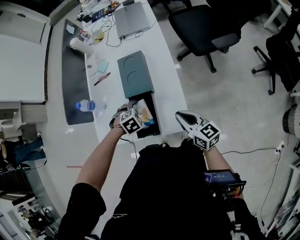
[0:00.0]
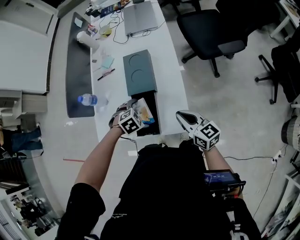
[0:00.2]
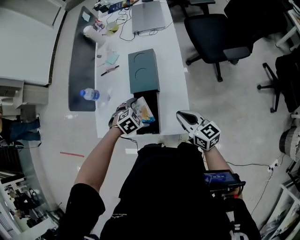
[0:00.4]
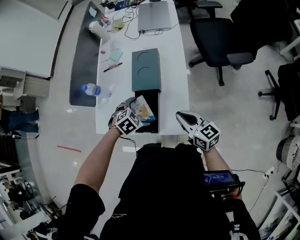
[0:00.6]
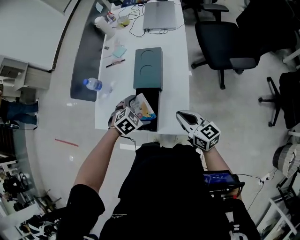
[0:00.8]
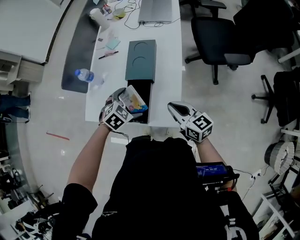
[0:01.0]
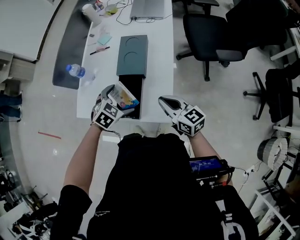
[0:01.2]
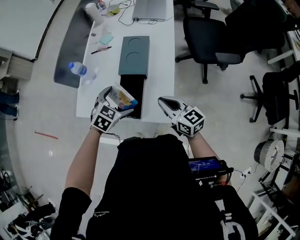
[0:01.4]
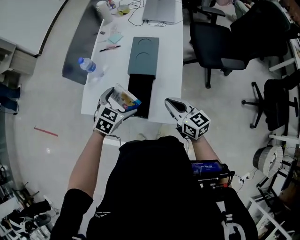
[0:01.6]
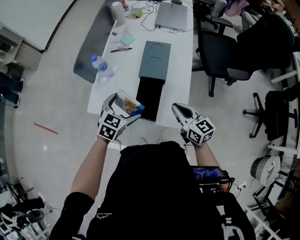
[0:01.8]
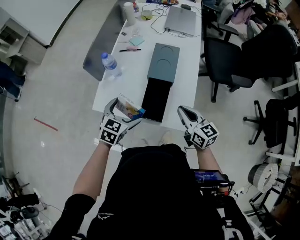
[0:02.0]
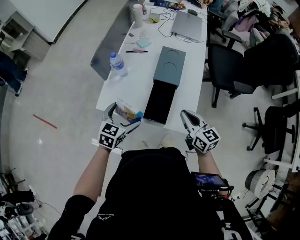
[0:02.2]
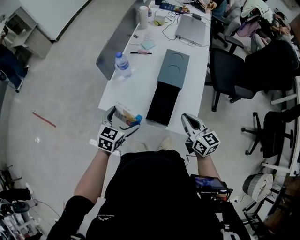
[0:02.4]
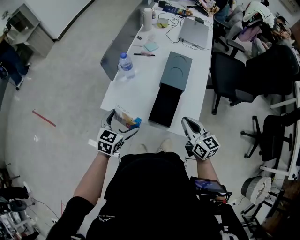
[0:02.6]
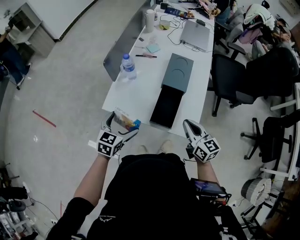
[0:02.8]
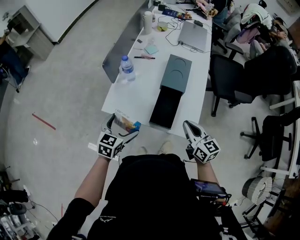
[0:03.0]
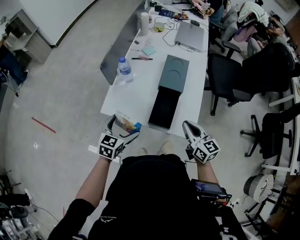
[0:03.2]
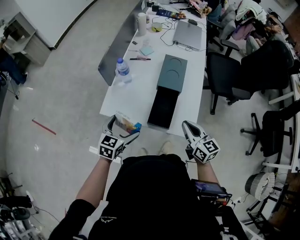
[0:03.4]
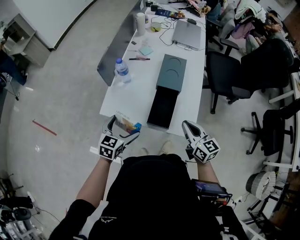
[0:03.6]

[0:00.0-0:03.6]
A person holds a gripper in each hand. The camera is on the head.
0.0 to 1.8 s: The left gripper moves upward, roughly 10 cm, and points its fingers some 40 degrees further upward, while the right gripper ends up roughly 5 cm from where it was.
1.8 to 3.6 s: The left gripper heads to the left and backward, covering roughly 10 cm; the right gripper ends up approximately 5 cm from where it was.

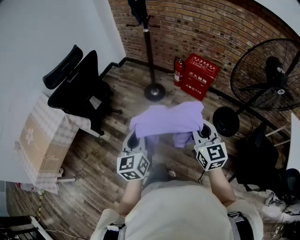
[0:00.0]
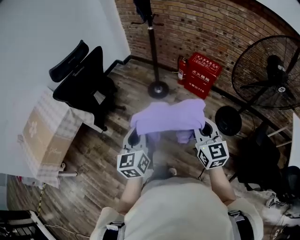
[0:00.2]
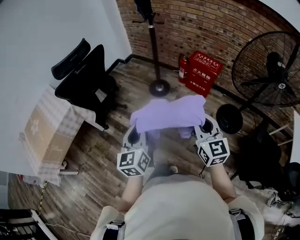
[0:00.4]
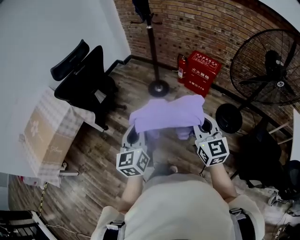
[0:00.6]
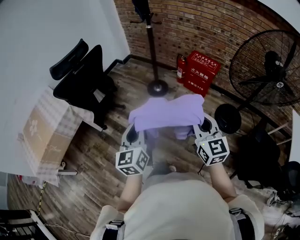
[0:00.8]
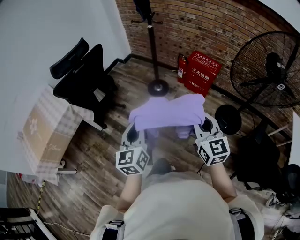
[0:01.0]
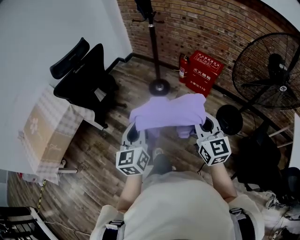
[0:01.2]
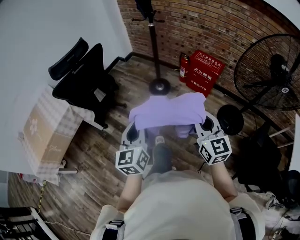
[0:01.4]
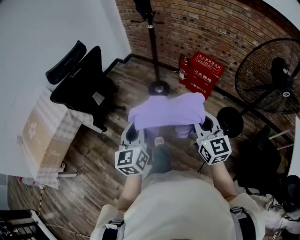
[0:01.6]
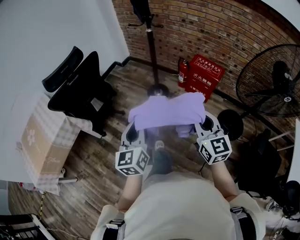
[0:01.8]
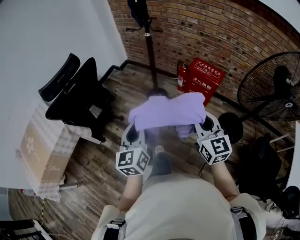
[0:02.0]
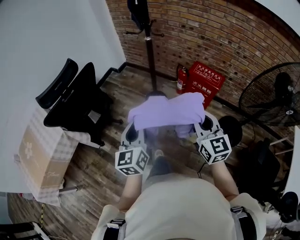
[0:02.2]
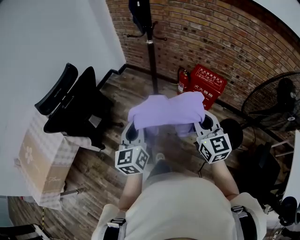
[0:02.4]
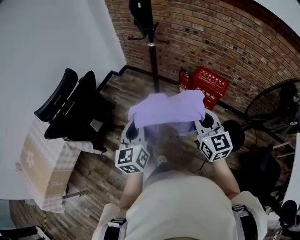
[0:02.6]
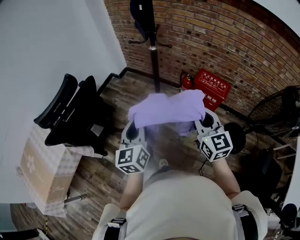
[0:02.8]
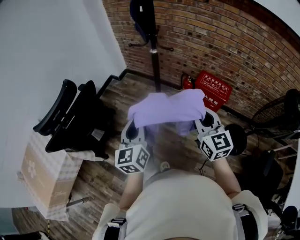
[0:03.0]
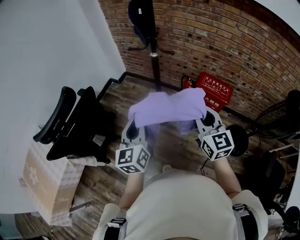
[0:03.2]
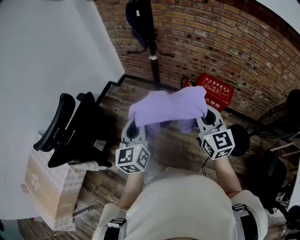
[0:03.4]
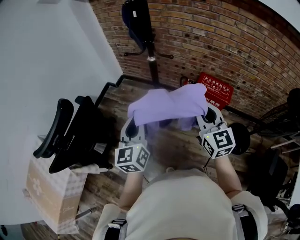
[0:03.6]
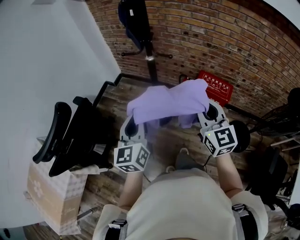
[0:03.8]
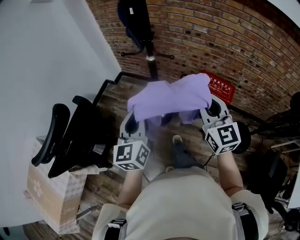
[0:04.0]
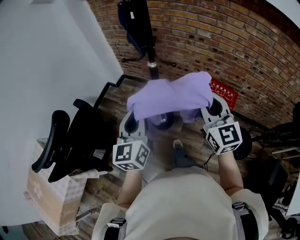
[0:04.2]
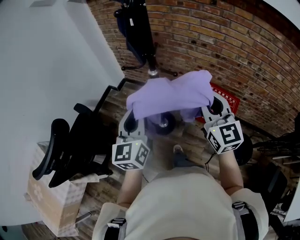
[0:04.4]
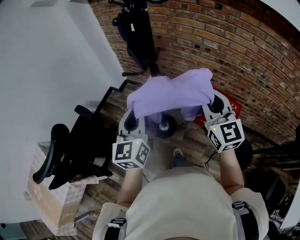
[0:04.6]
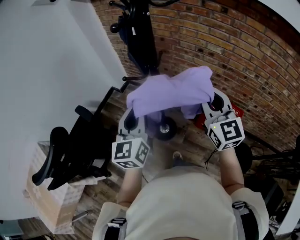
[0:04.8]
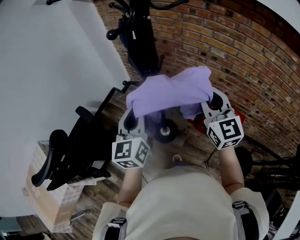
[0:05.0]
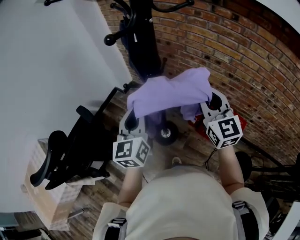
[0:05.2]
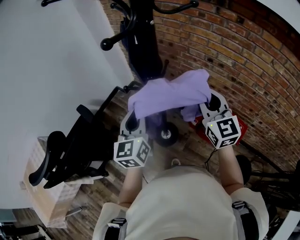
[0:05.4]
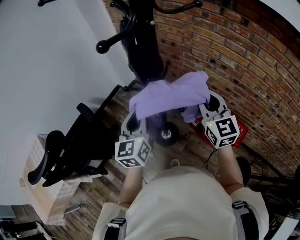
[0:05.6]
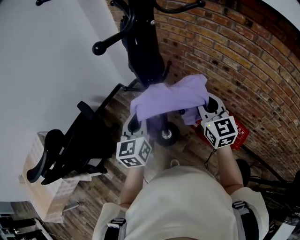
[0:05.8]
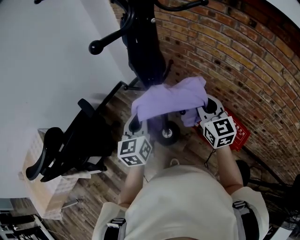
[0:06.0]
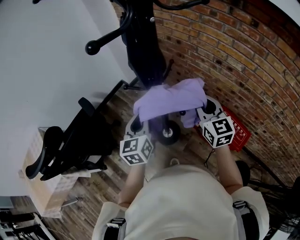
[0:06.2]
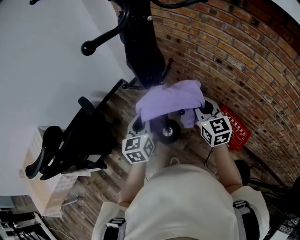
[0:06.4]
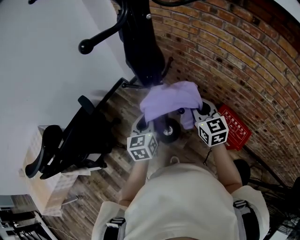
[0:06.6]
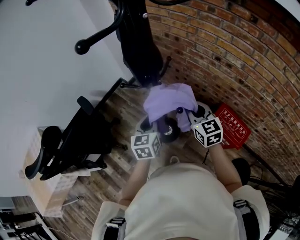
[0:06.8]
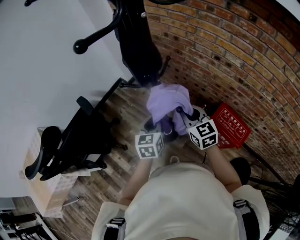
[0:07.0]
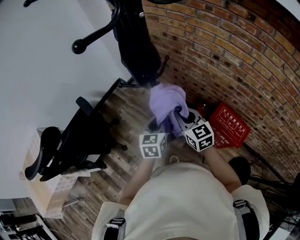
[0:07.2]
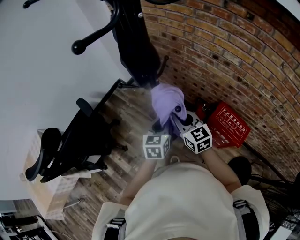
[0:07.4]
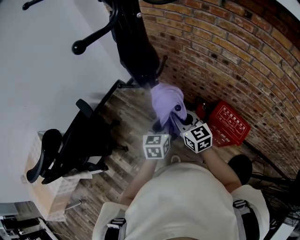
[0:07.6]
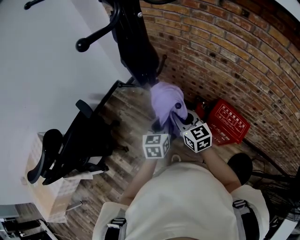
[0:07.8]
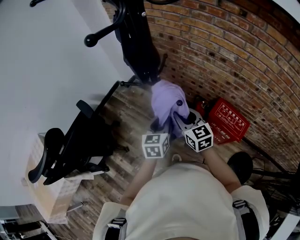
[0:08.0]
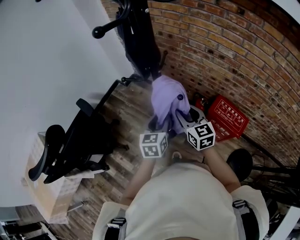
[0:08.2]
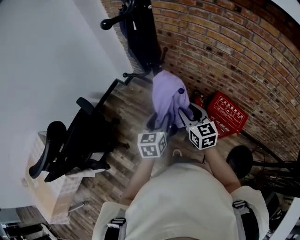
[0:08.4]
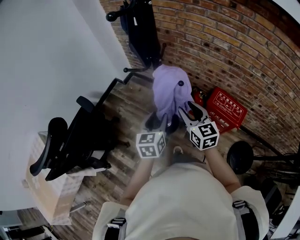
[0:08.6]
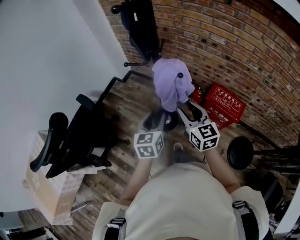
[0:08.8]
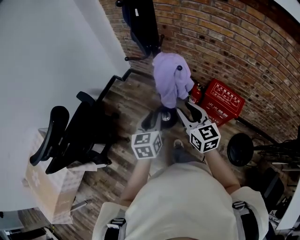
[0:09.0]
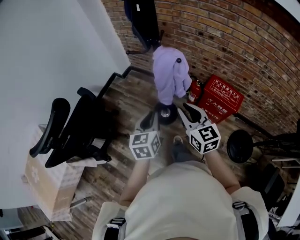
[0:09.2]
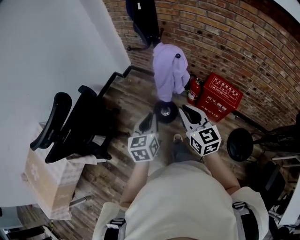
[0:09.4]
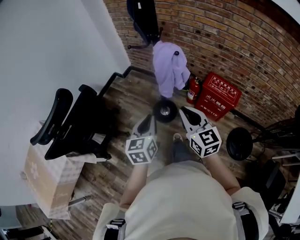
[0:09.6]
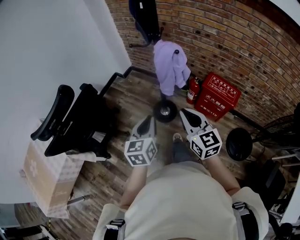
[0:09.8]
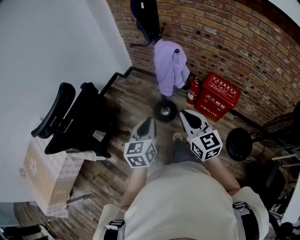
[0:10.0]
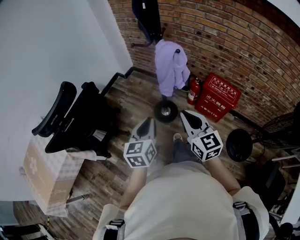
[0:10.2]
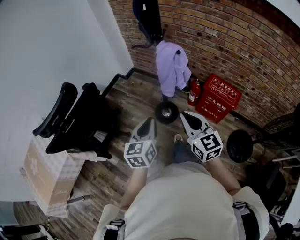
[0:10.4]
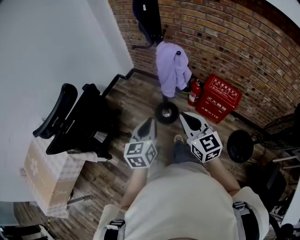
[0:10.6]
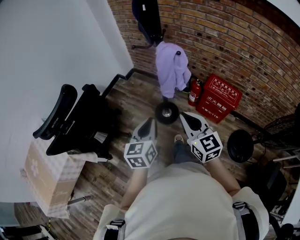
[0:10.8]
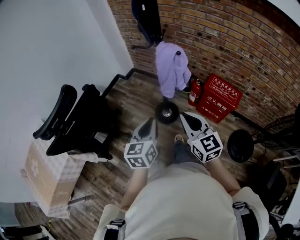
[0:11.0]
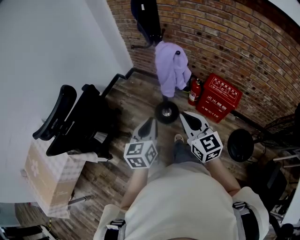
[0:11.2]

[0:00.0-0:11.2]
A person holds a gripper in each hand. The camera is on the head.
0.0 to 1.6 s: The grippers make only small movements.
1.6 to 3.2 s: Both grippers travel together forward, roughly 35 cm.
3.2 to 4.8 s: The two grippers go approximately 25 cm forward.
4.8 to 6.4 s: The grippers both shift downward and forward by approximately 15 cm. The left gripper rotates roughly 20 degrees.
6.4 to 8.0 s: The left gripper goes roughly 10 cm to the right and downward. The right gripper heads downward and to the left, covering some 10 cm.
8.0 to 9.6 s: The left gripper heads backward and to the left, covering roughly 25 cm, while the right gripper moves backward, some 25 cm, and closes up.
9.6 to 11.2 s: The grippers make only small movements.

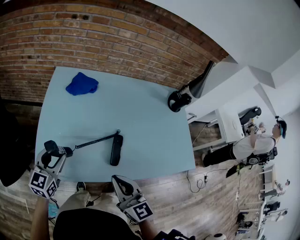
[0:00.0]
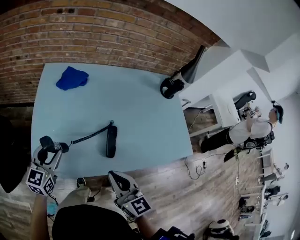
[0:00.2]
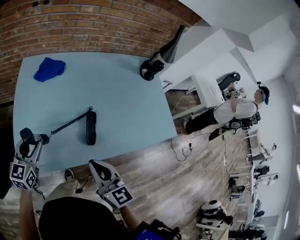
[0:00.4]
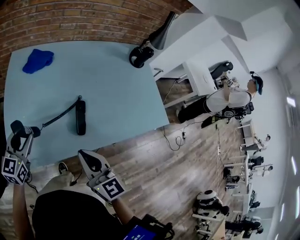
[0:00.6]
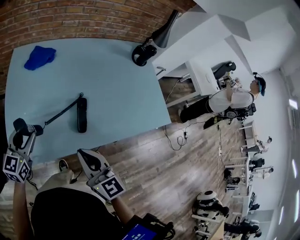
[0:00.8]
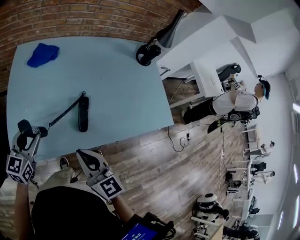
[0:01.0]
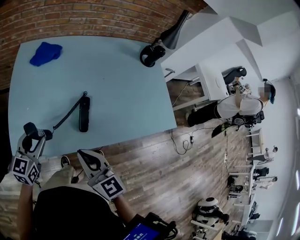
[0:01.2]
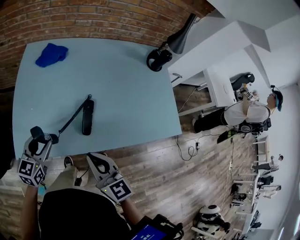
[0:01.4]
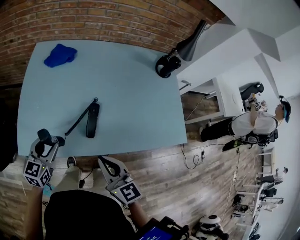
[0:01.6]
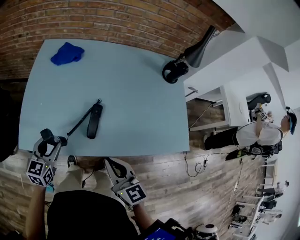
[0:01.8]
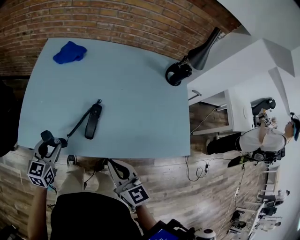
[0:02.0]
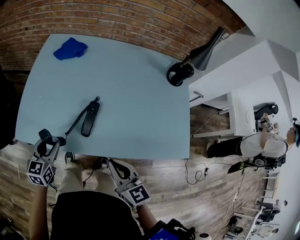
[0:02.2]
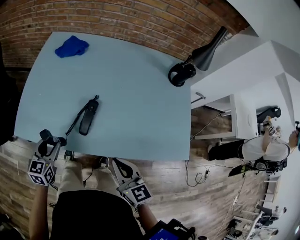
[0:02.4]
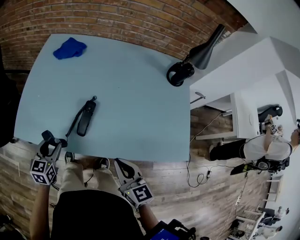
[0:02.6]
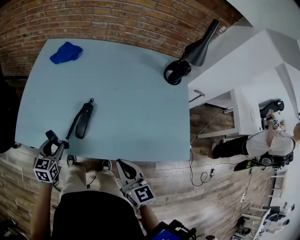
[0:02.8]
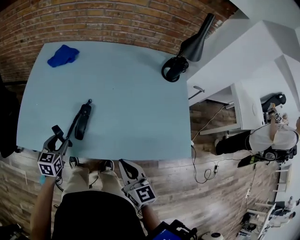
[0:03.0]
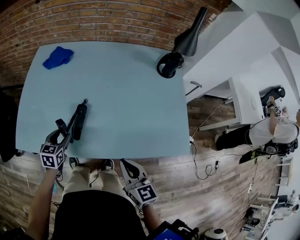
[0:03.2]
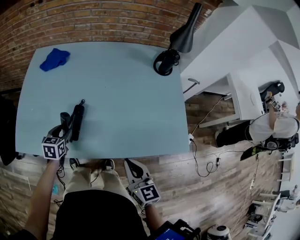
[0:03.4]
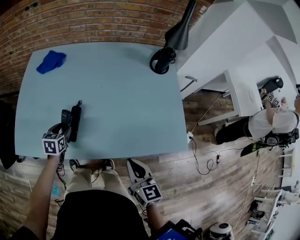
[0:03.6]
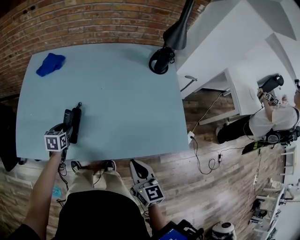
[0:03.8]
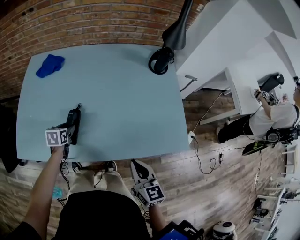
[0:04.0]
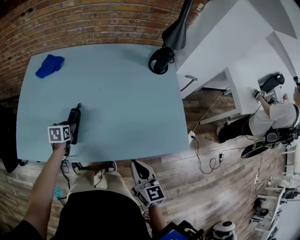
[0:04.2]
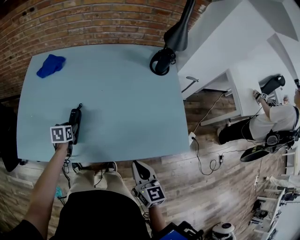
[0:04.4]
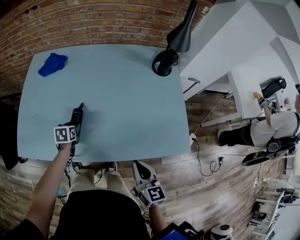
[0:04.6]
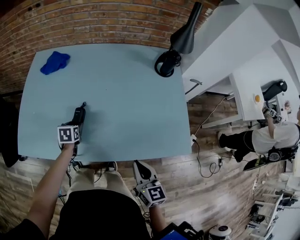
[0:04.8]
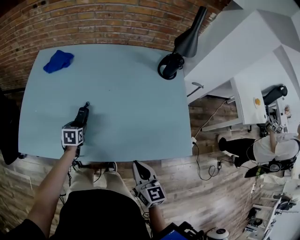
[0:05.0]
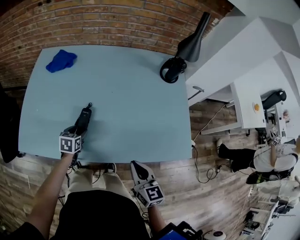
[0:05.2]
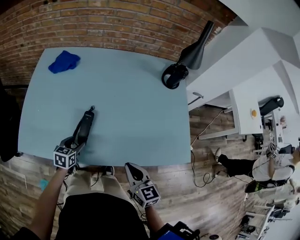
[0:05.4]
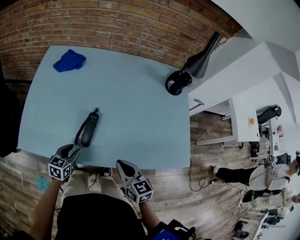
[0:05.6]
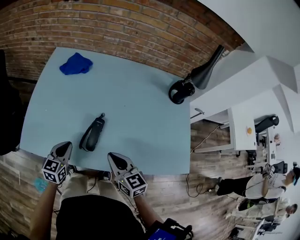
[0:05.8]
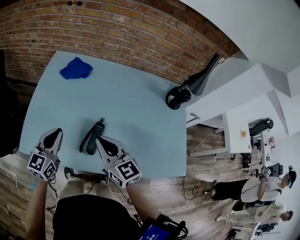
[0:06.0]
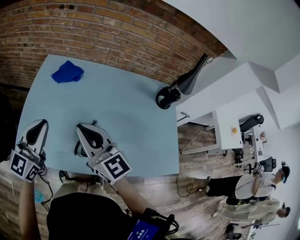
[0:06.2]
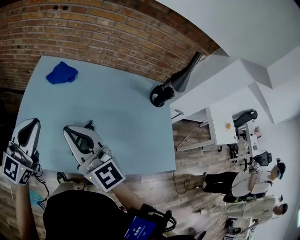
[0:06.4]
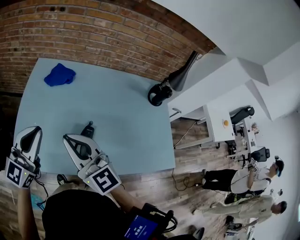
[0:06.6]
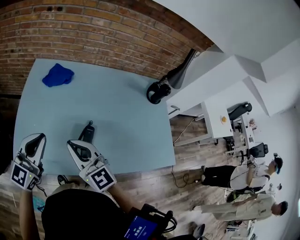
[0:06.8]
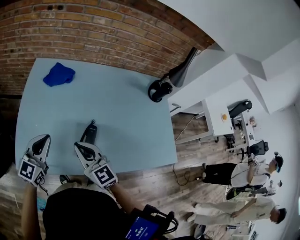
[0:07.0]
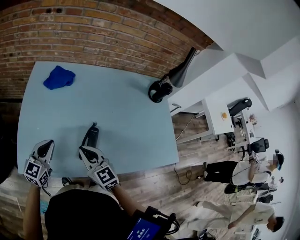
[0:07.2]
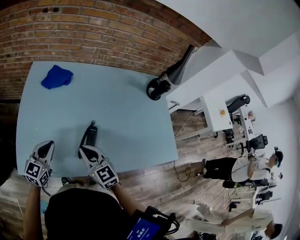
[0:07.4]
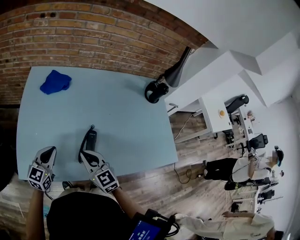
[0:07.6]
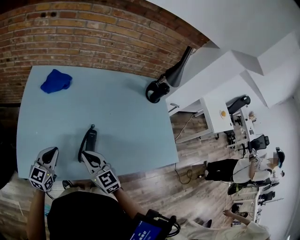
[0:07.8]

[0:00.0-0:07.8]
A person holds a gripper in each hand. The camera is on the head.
0.0 to 1.6 s: Both grippers travel together to the right, about 10 cm.
1.6 to 3.2 s: The left gripper is displaced to the right and downward by about 15 cm, while the right gripper goes some 20 cm to the right.
3.2 to 4.6 s: The left gripper shifts some 10 cm forward and downward. Meanwhile the right gripper moves to the right, about 5 cm.
4.6 to 6.2 s: The left gripper shifts about 40 cm upward and to the left, tips its fingers upward by about 60 degrees, and closes its fingers. Meanwhile the right gripper travels to the left, upward and forward by roughly 40 cm, and turns by some 40 degrees.
6.2 to 7.8 s: The two grippers go some 20 cm downward. The left gripper turns by approximately 20 degrees, while the right gripper rotates approximately 20 degrees.

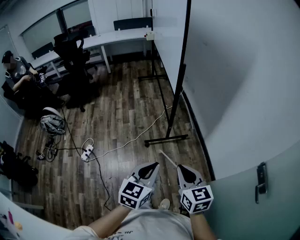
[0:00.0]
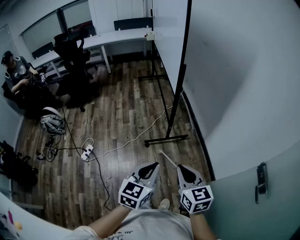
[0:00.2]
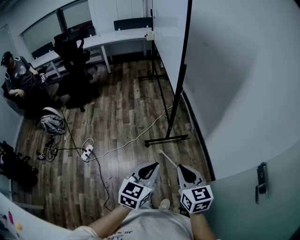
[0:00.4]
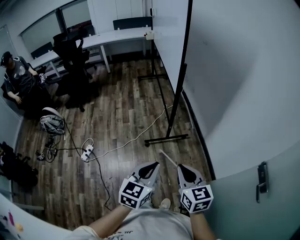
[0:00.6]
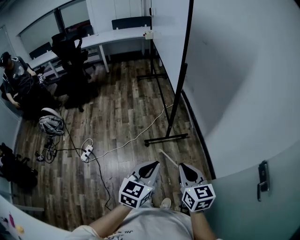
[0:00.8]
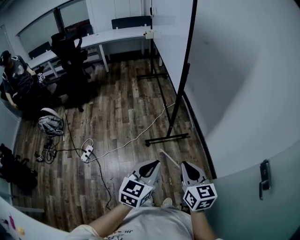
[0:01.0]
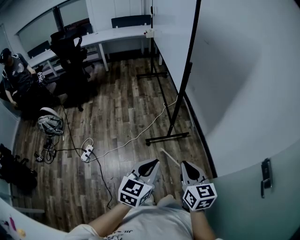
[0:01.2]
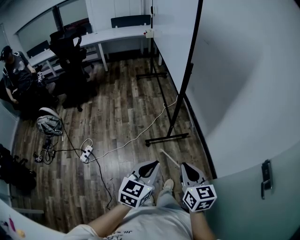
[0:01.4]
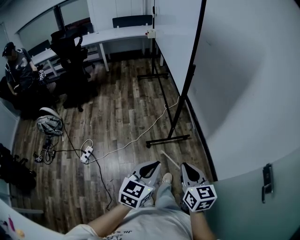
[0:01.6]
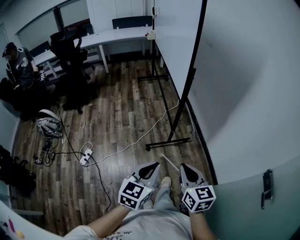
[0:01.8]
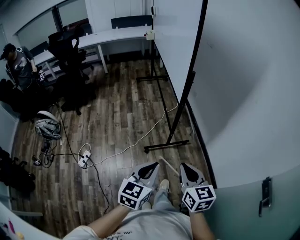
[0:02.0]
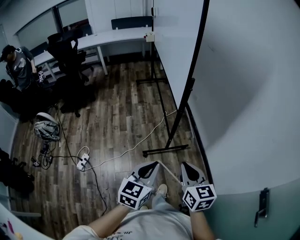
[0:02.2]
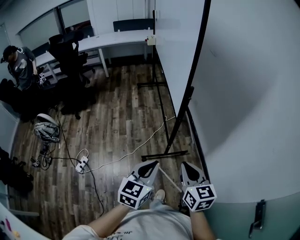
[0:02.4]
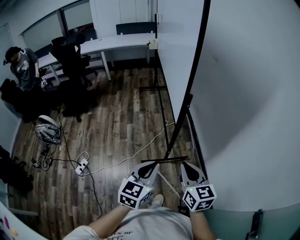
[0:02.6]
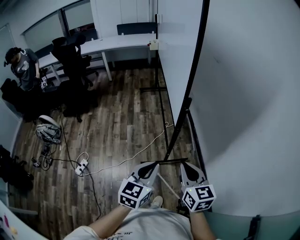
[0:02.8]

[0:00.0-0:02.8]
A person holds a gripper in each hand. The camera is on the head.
0.0 to 1.4 s: The left gripper moves to the left, roughly 5 cm.
1.4 to 2.8 s: The grippers both shift forward by approximately 25 cm.
